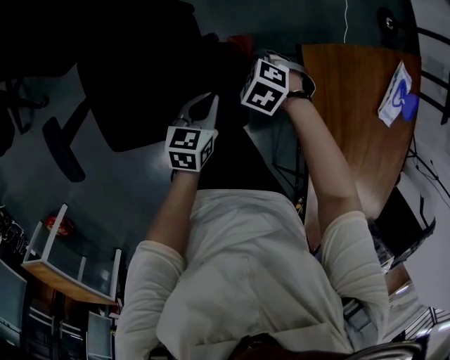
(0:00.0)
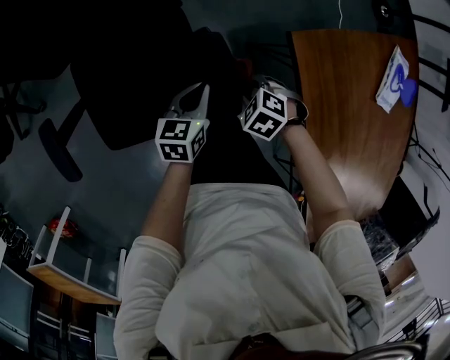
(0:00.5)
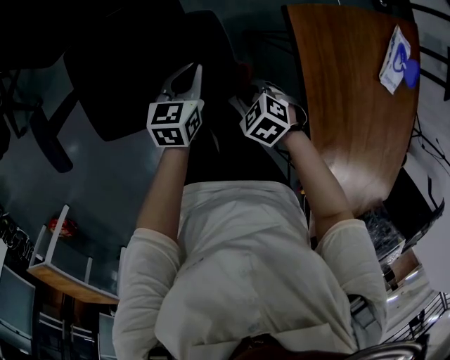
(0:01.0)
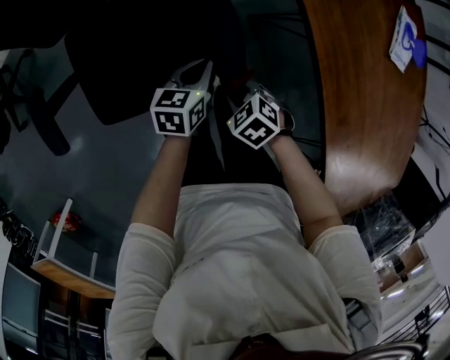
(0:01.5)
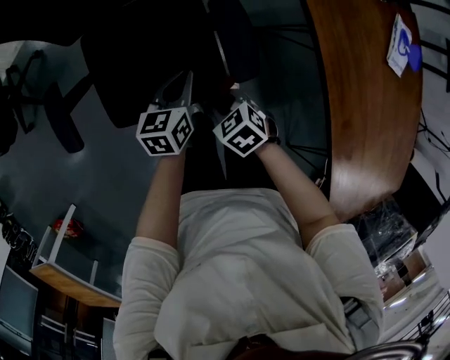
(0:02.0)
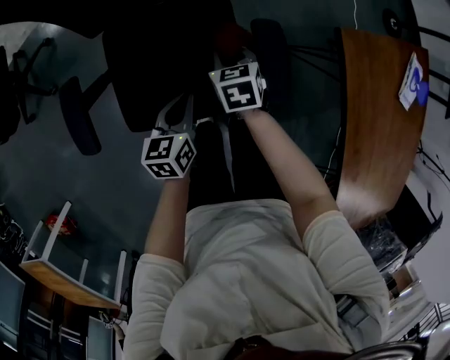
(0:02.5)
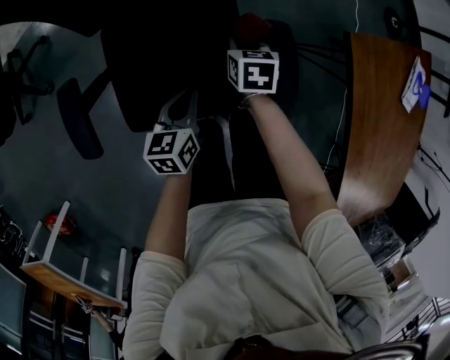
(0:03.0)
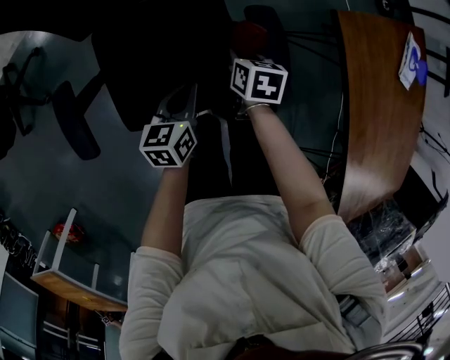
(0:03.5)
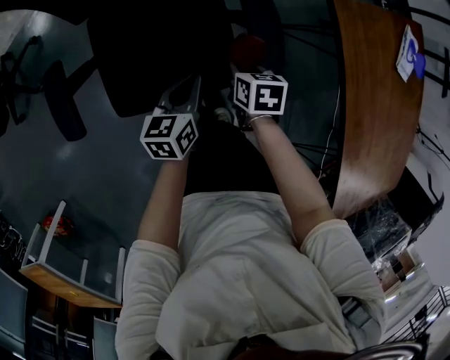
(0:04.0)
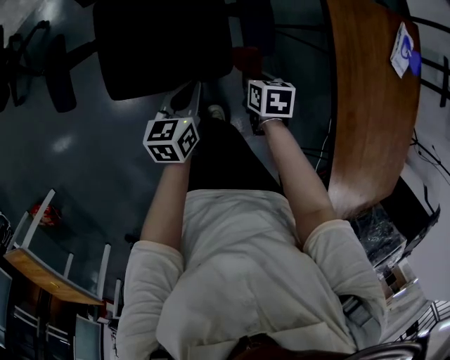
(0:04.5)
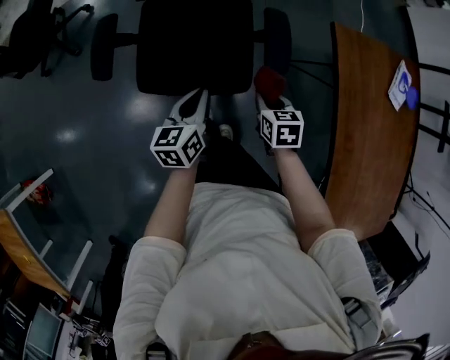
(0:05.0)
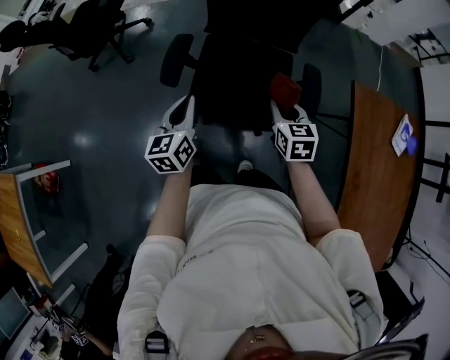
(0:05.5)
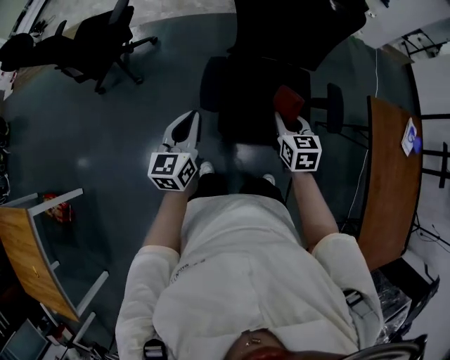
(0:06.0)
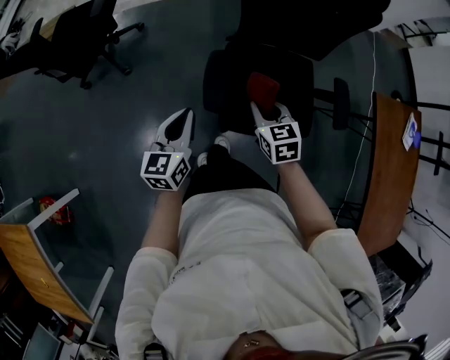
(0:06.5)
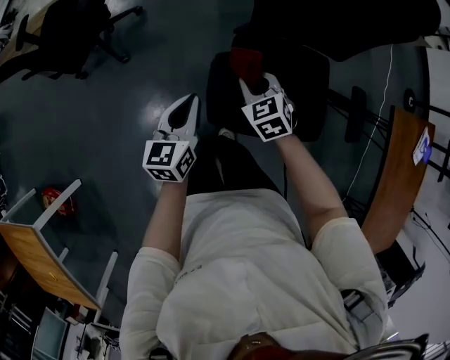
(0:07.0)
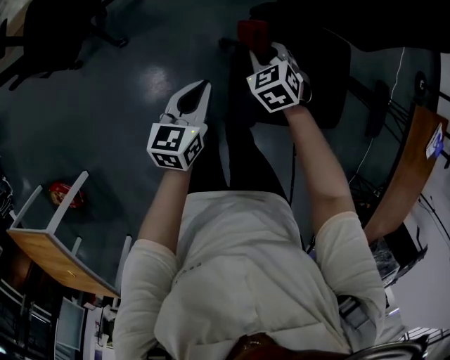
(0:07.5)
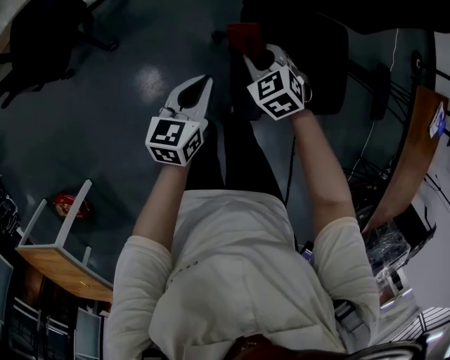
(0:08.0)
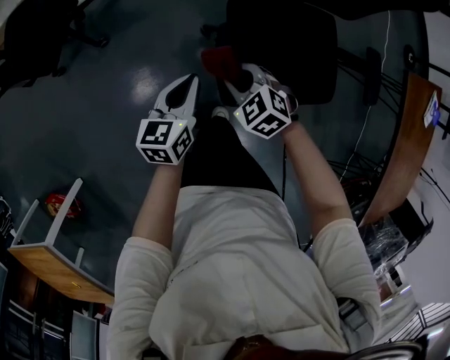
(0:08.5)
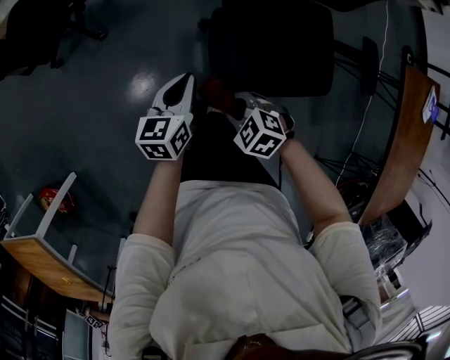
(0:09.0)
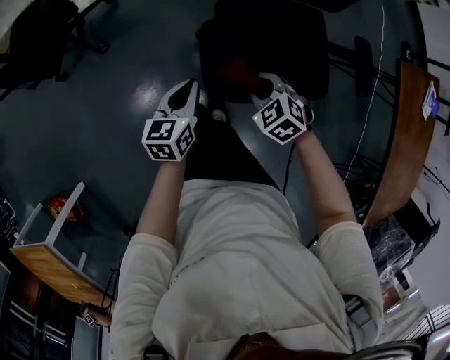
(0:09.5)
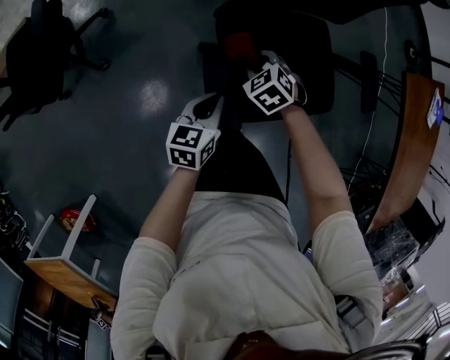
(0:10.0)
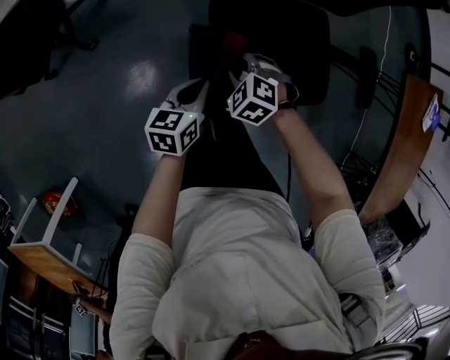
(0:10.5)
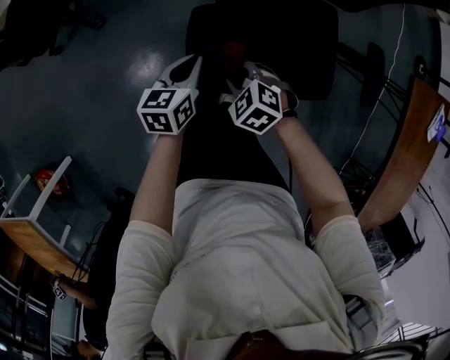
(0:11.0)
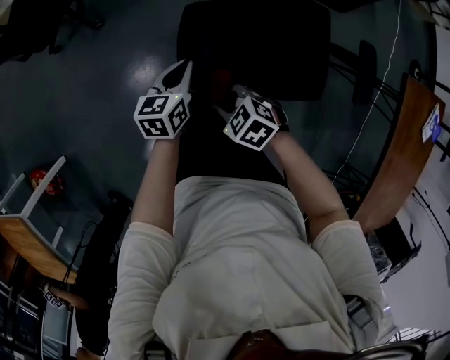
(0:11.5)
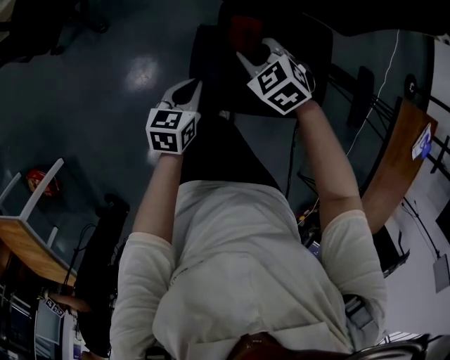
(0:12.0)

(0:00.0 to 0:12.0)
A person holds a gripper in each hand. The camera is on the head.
0:00.0 - 0:02.0: The right gripper ends up approximately 25 cm from where it was, and turns by approximately 40 degrees; the left gripper moves about 10 cm.
0:02.0 - 0:04.0: The right gripper travels forward and back again, some 25 cm each way, and turns by some 40 degrees.
0:04.0 - 0:06.0: Both grippers travel together to the left and upward, some 40 cm. The left gripper turns by approximately 40 degrees; the right gripper changes its angle by about 40 degrees.
0:06.0 - 0:08.0: The left gripper goes roughly 25 cm forward and downward, and rotates about 30 degrees; the right gripper is displaced to the left, forward and downward by approximately 35 cm, and rotates some 40 degrees.
0:08.0 - 0:10.0: The left gripper moves some 10 cm.
0:10.0 - 0:12.0: The right gripper is displaced upward by roughly 5 cm, and changes its angle by about 30 degrees.

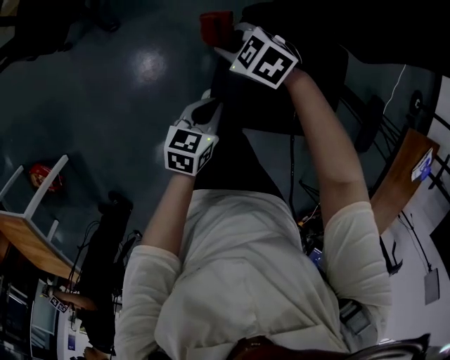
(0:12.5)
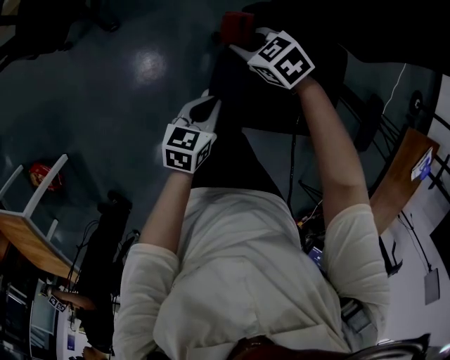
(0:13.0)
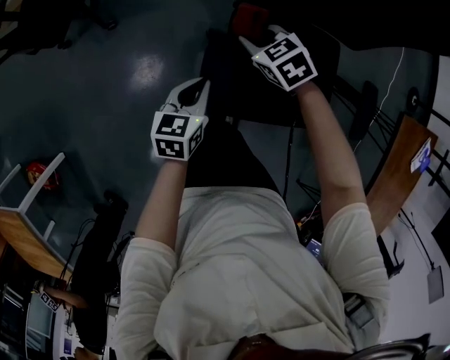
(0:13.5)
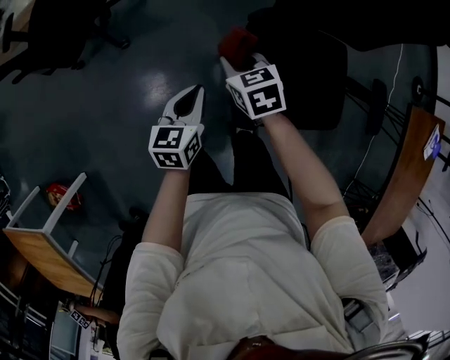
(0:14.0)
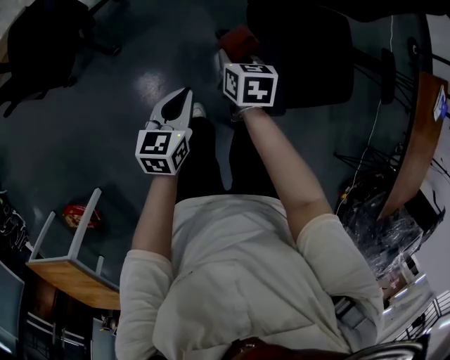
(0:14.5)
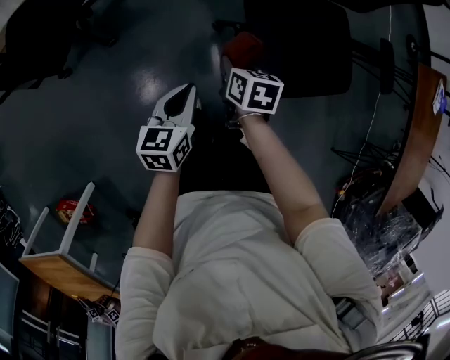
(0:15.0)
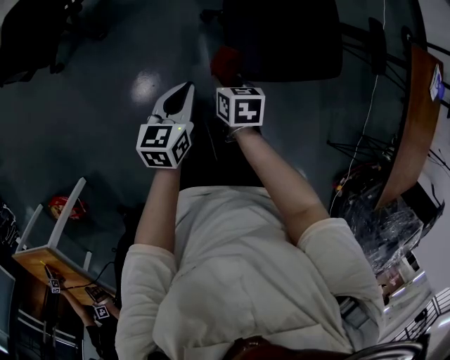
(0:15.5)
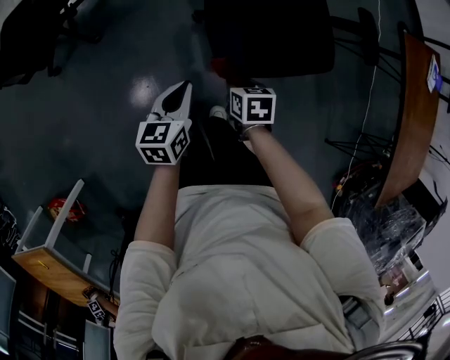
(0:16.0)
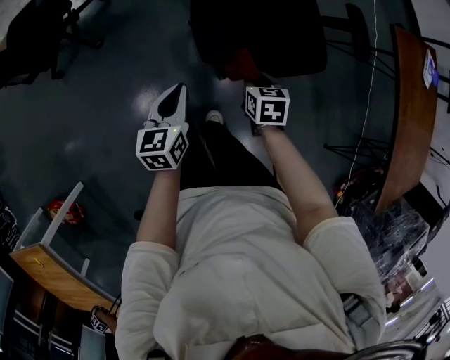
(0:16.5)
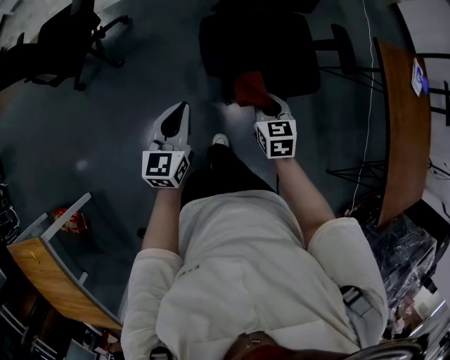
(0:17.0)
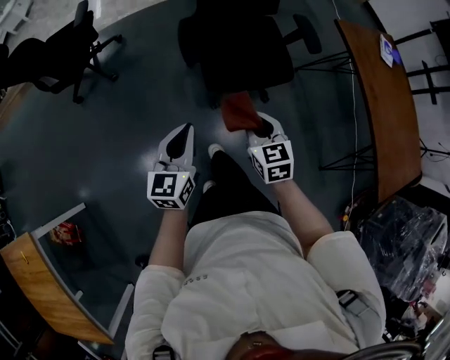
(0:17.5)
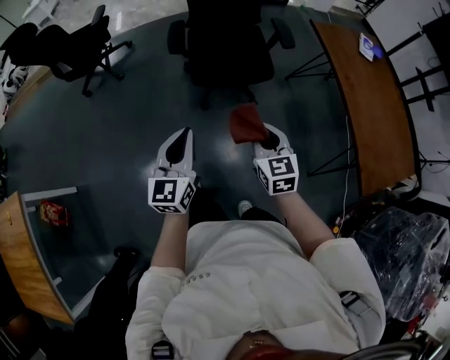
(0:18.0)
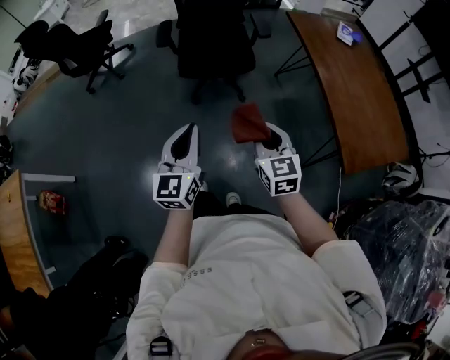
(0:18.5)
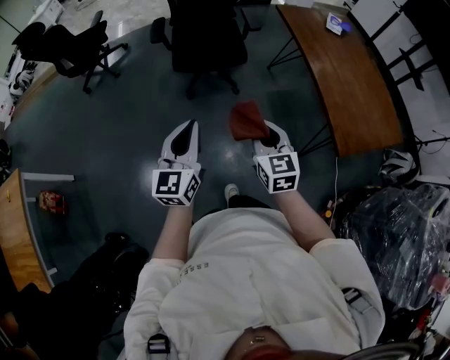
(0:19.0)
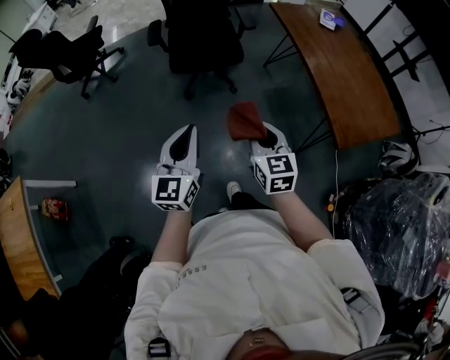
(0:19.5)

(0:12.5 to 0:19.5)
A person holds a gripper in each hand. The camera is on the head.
0:12.5 - 0:14.5: The left gripper ends up some 20 cm from where it was; the right gripper rotates around the line of its fingers by some 70 degrees, clockwise from behind.
0:14.5 - 0:16.0: The right gripper travels backward and to the right by about 25 cm, while the left gripper goes approximately 15 cm backward and to the right.
0:16.0 - 0:17.5: The left gripper moves backward, upward and to the right, about 30 cm, and changes its angle by about 30 degrees. Meanwhile the right gripper moves upward, backward and to the right, approximately 35 cm, and rotates roughly 40 degrees.
0:17.5 - 0:19.5: The two grippers travel together, backward and to the right, roughly 40 cm.

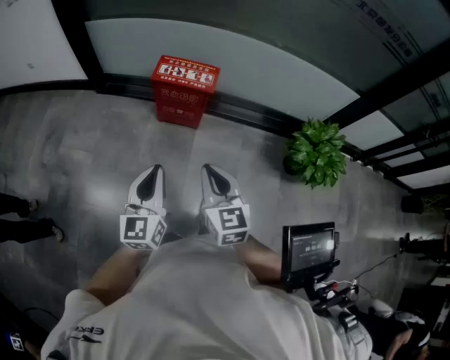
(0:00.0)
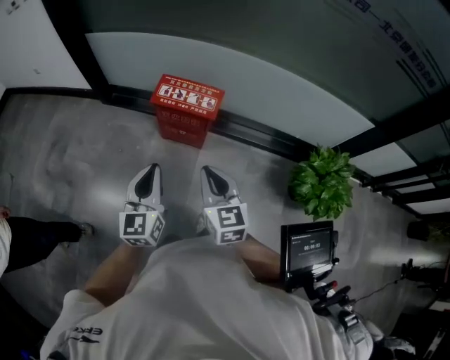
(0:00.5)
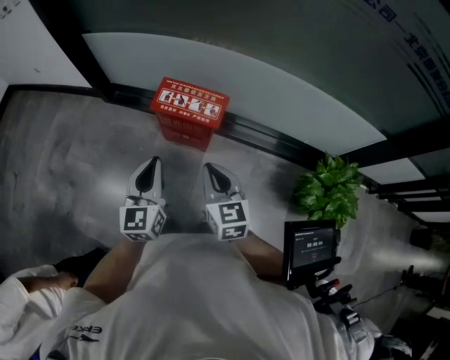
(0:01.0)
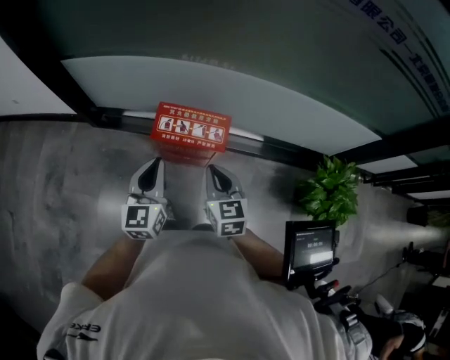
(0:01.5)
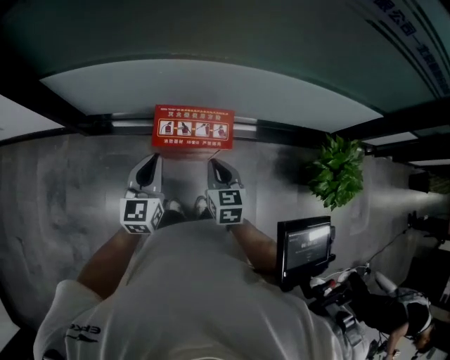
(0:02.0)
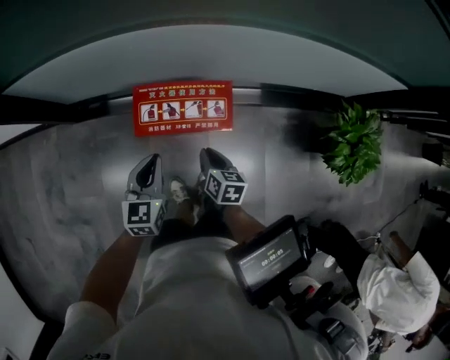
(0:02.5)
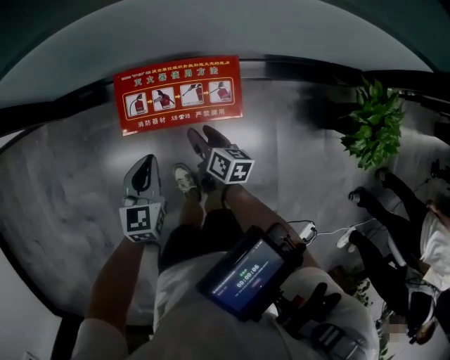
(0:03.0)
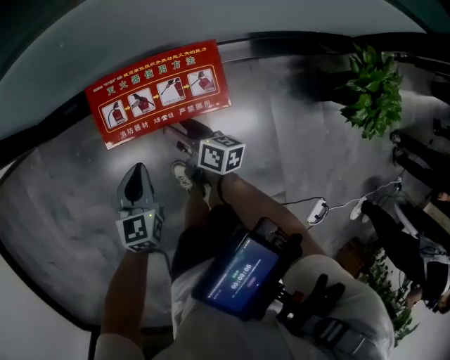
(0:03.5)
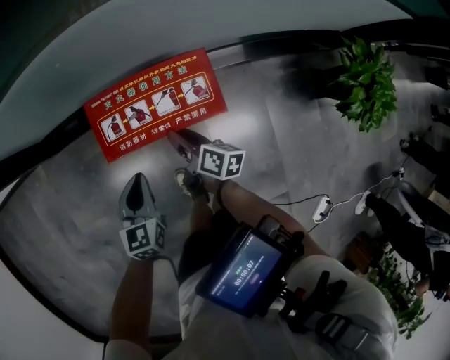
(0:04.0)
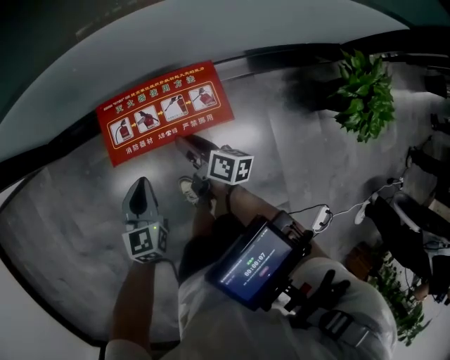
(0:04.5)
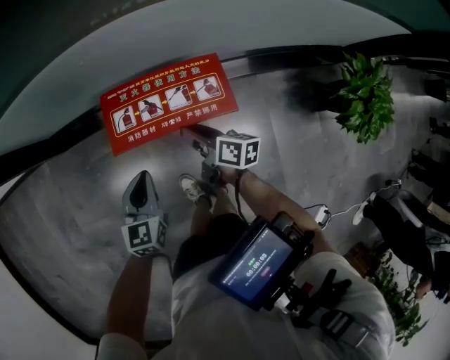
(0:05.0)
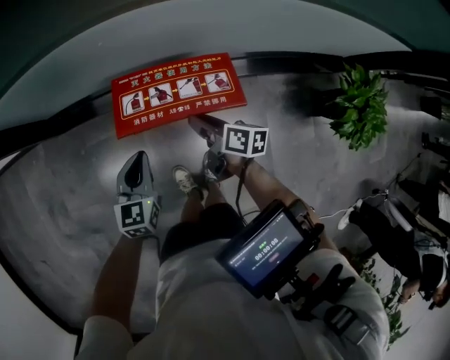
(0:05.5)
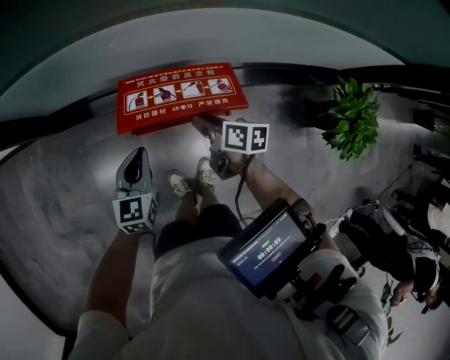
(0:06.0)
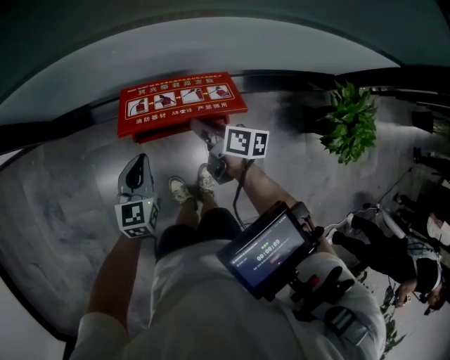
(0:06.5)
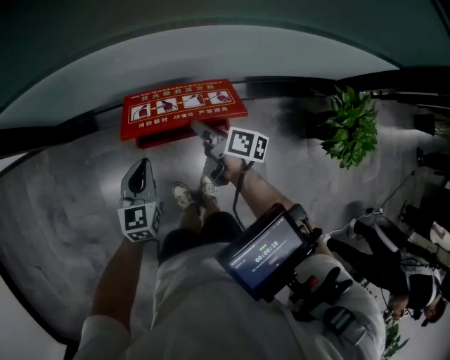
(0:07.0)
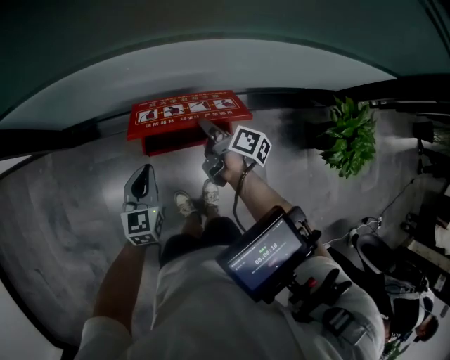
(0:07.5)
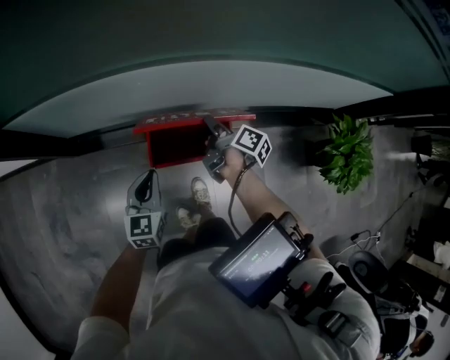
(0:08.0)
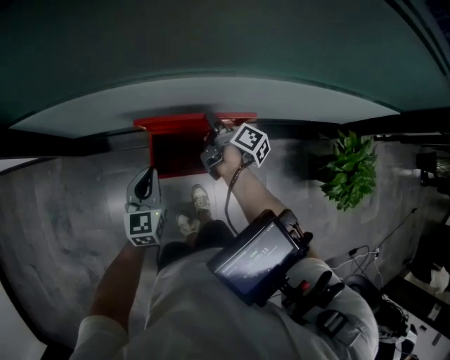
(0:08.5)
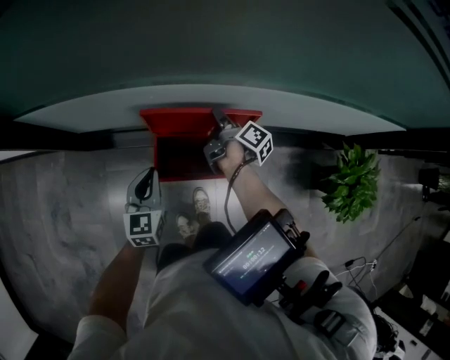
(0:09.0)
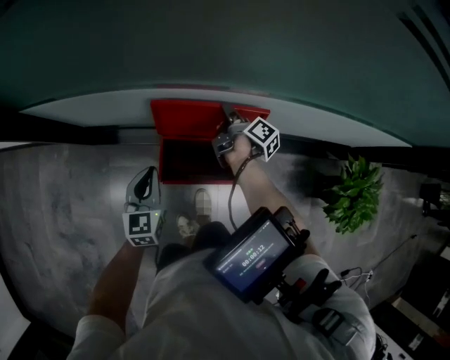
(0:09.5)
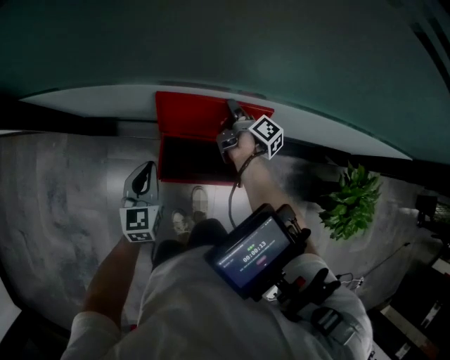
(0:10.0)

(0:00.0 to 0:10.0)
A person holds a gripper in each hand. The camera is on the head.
0:00.0 - 0:02.0: The two grippers travel together, forward, some 50 cm. The right gripper rotates about 20 degrees.
0:02.0 - 0:04.0: The grippers both shift downward by roughly 25 cm. The left gripper turns by approximately 20 degrees; the right gripper twists roughly 60 degrees clockwise, seen from behind, and opens up.
0:04.0 - 0:06.0: The left gripper moves upward, some 5 cm. Meanwhile the right gripper is displaced upward by approximately 10 cm, and turns by some 20 degrees.
0:06.0 - 0:08.0: The right gripper is displaced forward and upward by some 10 cm, and rotates some 40 degrees. Meanwhile the left gripper moves approximately 5 cm.
0:08.0 - 0:10.0: The left gripper is displaced forward by roughly 10 cm, while the right gripper is displaced forward by approximately 15 cm.
